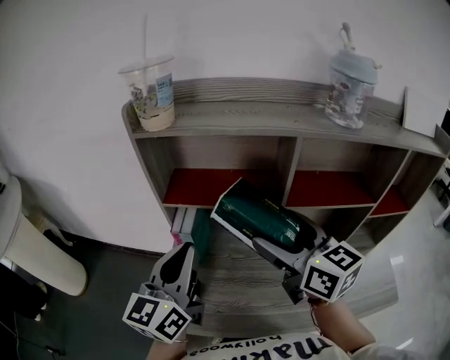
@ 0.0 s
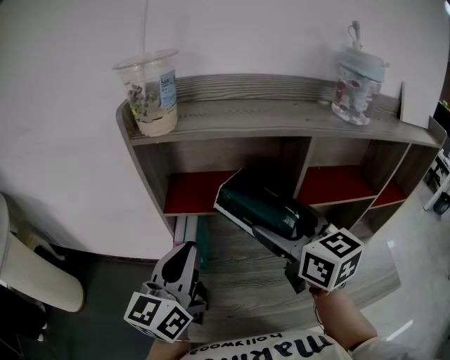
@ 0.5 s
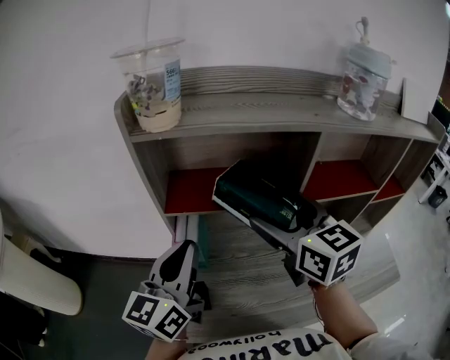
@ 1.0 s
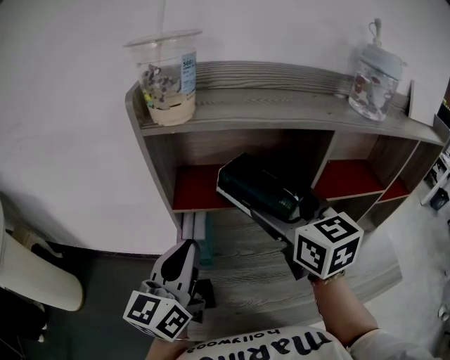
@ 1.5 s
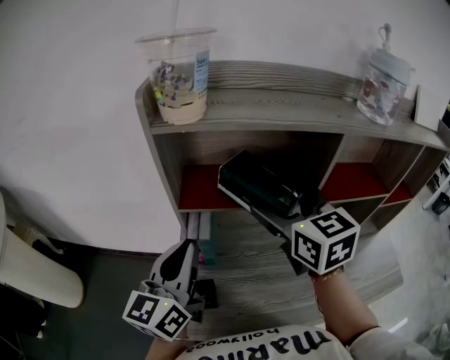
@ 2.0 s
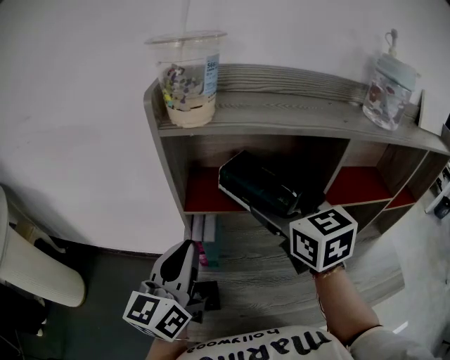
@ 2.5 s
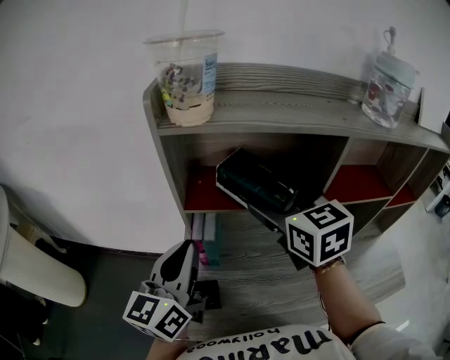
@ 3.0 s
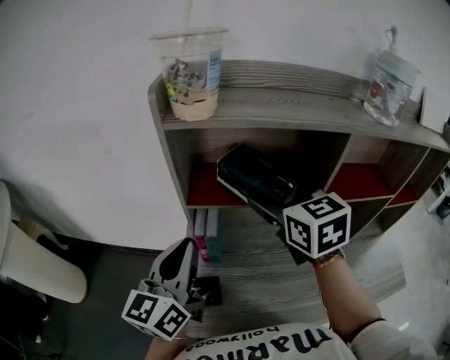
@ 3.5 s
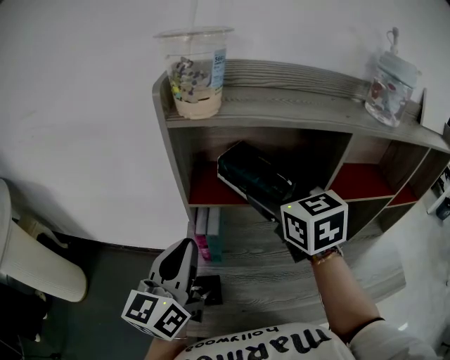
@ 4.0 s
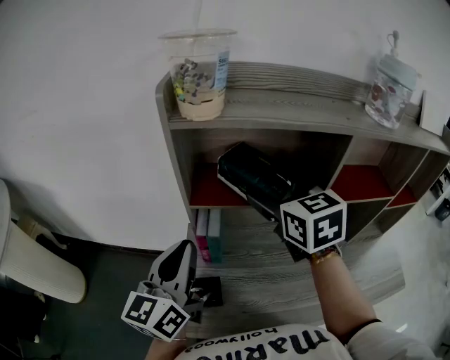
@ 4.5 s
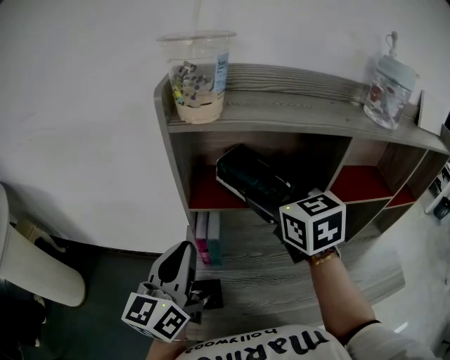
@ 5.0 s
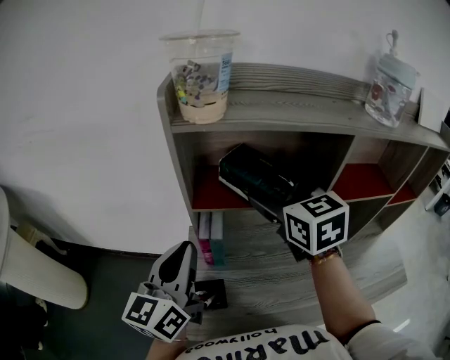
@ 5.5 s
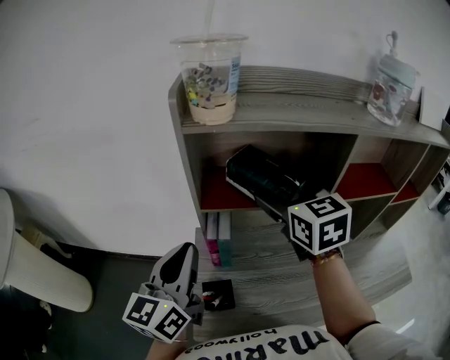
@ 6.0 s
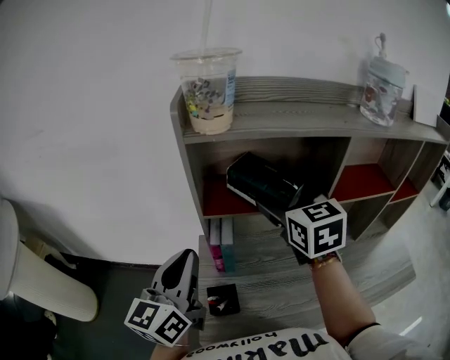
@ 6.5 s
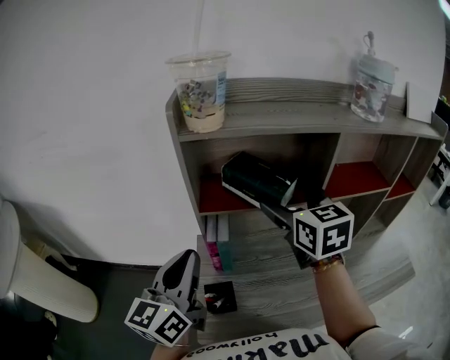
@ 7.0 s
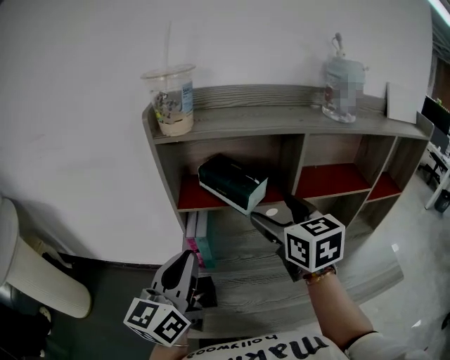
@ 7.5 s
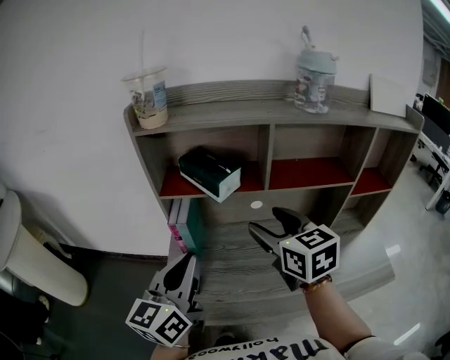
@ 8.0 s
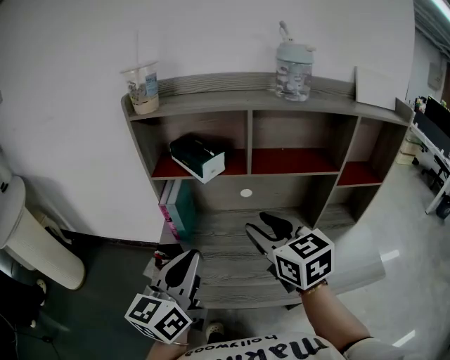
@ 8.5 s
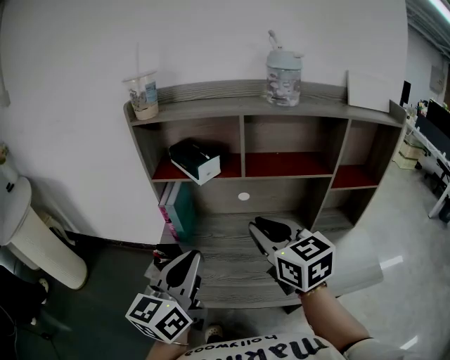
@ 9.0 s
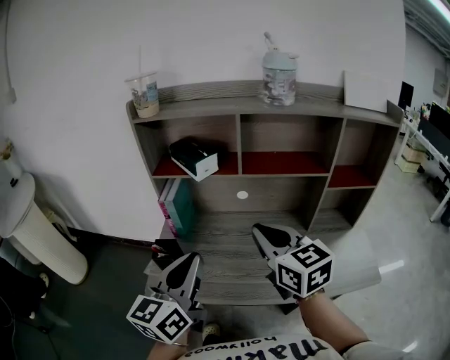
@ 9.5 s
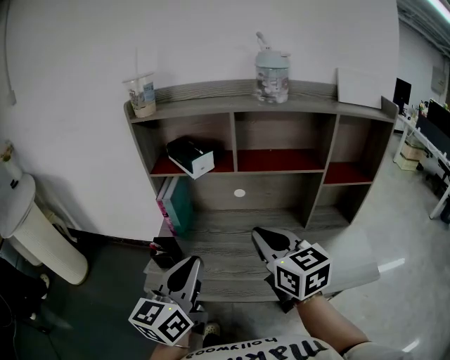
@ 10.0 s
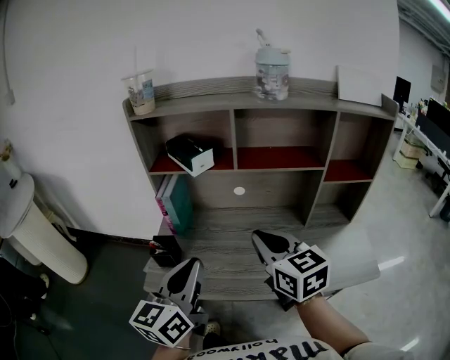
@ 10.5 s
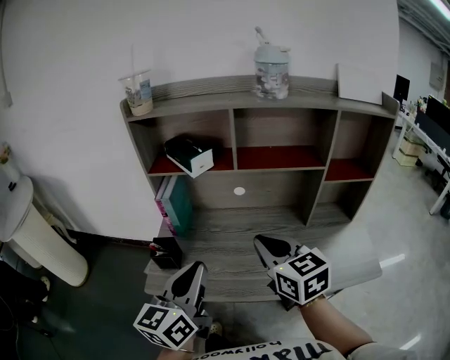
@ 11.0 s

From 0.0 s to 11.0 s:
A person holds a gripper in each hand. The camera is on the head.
From 0.0 s to 2.0 s: The right gripper is displaced forward and to the left by some 10 cm, and turns by some 20 degrees; the left gripper is displaced to the left and forward by approximately 10 cm.
From 2.0 s to 5.5 s: The grippers stay close to where they were, moving slightly.
From 5.5 s to 7.5 s: Both grippers travel together backward and to the right, approximately 10 cm.
From 7.5 s to 9.0 s: The left gripper shifts roughly 20 cm to the right and backward; the right gripper is displaced backward and to the right by some 15 cm, and closes up.
From 9.0 s to 11.0 s: The right gripper moves downward, about 5 cm; the left gripper changes place by approximately 5 cm.

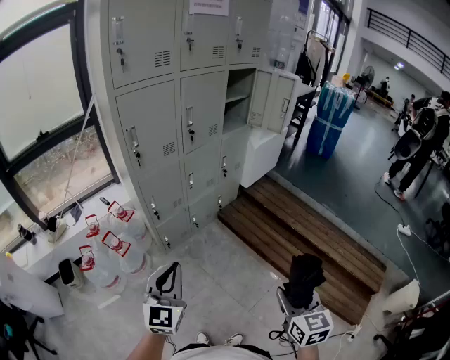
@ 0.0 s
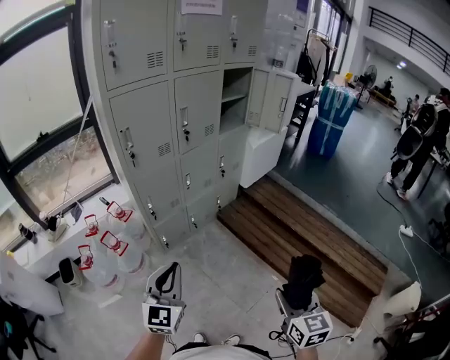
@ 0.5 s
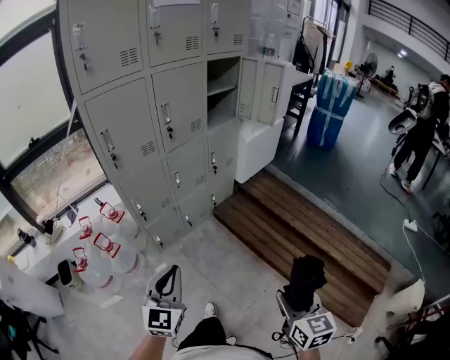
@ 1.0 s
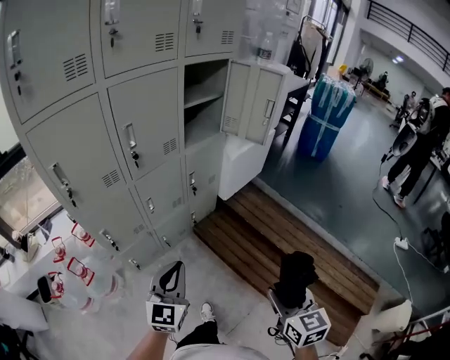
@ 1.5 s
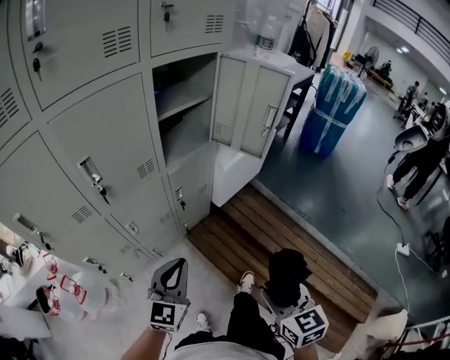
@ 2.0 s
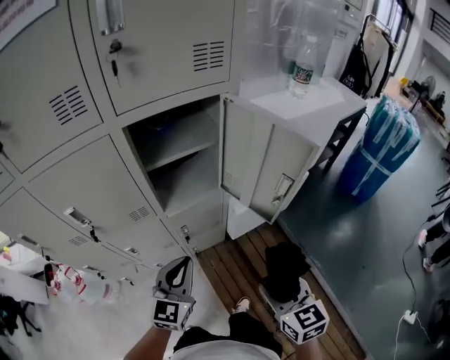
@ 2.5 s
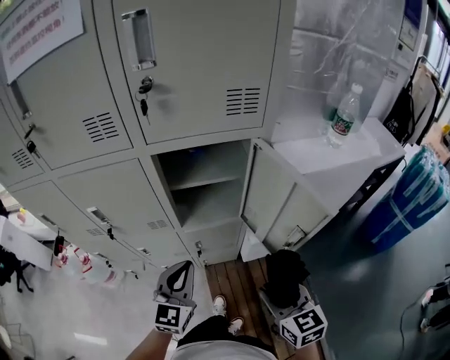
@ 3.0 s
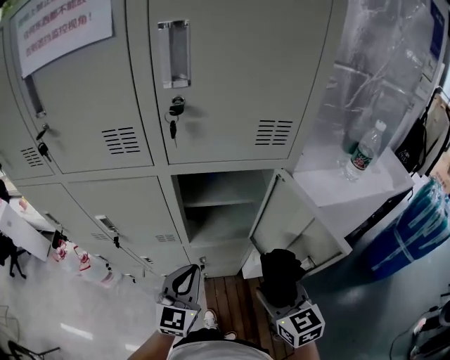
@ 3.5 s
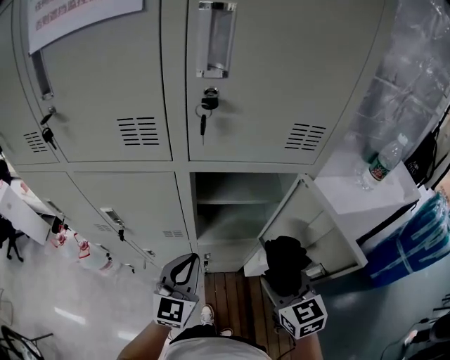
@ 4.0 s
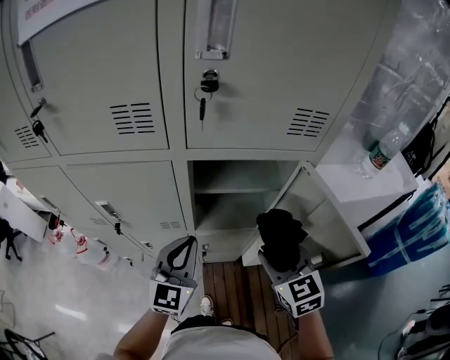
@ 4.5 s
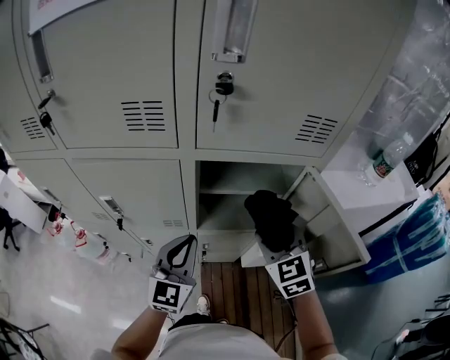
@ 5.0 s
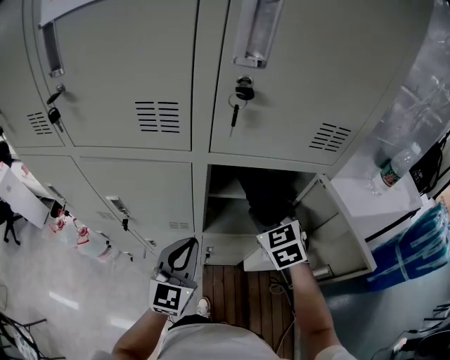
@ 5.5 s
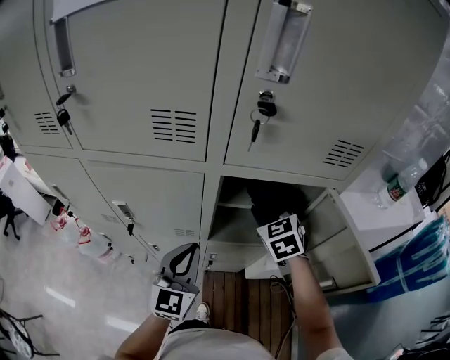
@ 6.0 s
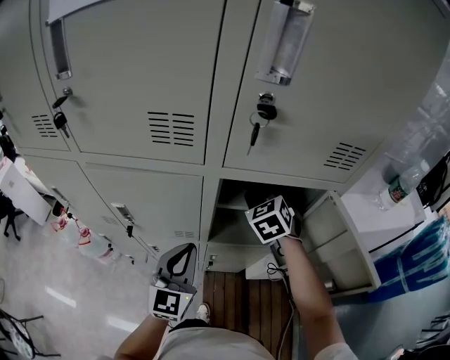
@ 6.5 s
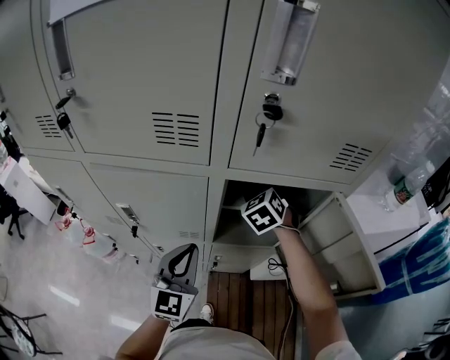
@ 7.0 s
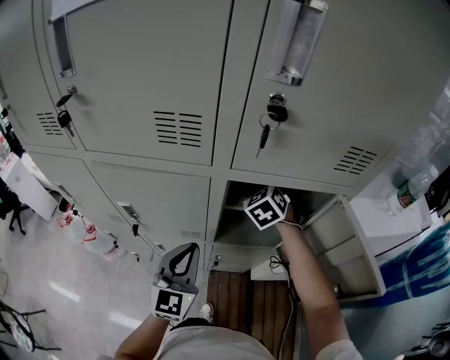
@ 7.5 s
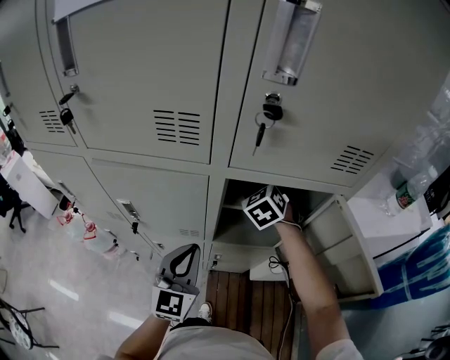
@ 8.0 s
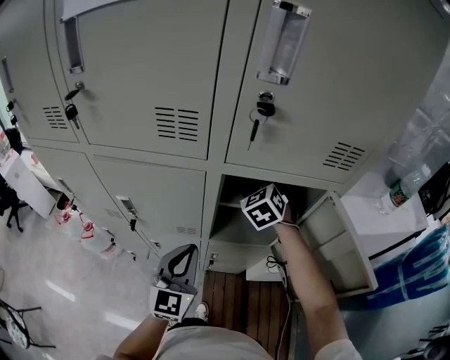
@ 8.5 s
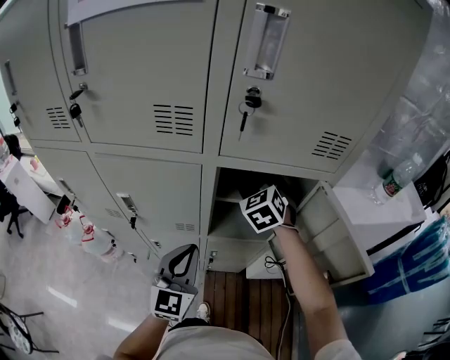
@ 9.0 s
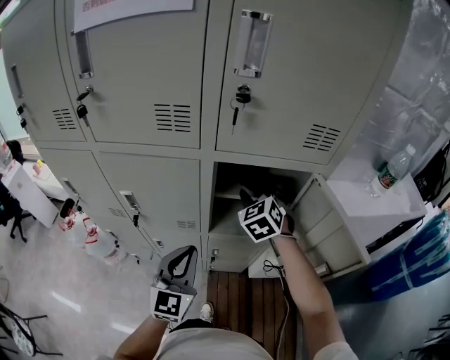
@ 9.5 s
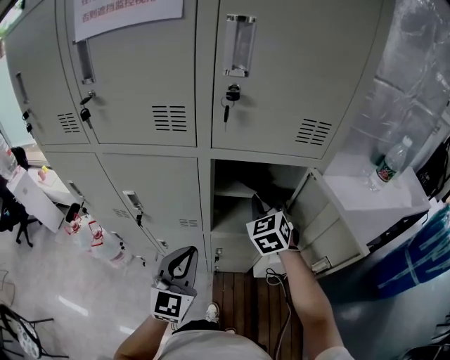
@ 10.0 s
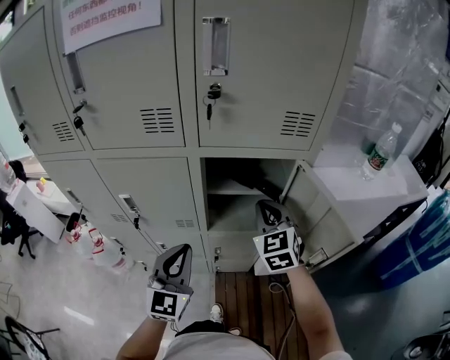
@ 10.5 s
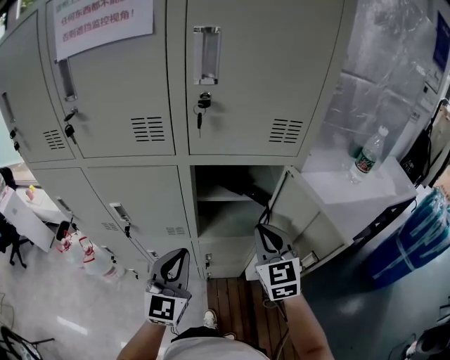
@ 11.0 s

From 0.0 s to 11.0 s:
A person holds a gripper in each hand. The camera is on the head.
From 0.0 s to 2.0 s: The pair of grippers is taken forward and to the right, roughly 50 cm.
From 2.0 s to 3.5 s: The left gripper moves some 30 cm, and turns by roughly 40 degrees. The right gripper changes place by about 40 cm, and swivels roughly 40 degrees.
From 3.5 s to 5.5 s: The right gripper travels forward by some 20 cm, and rotates roughly 20 degrees. Meanwhile the left gripper travels to the left and forward by some 10 cm.
From 5.5 s to 7.5 s: The right gripper goes about 15 cm forward and to the left.
From 7.5 s to 9.0 s: The right gripper ends up about 5 cm from where it was.
From 9.0 s to 11.0 s: The right gripper heads backward and to the right, covering about 20 cm, turns by roughly 30 degrees, and closes up; the left gripper ends up some 5 cm from where it was.

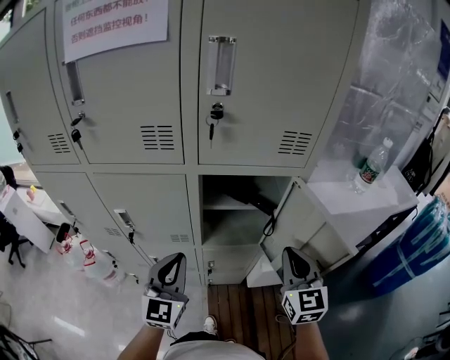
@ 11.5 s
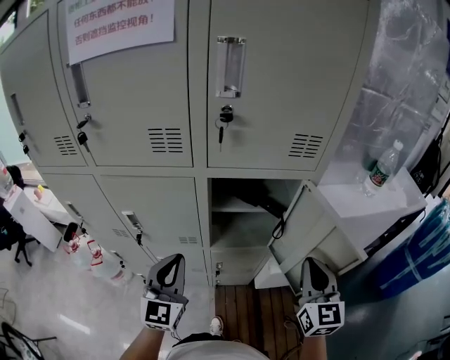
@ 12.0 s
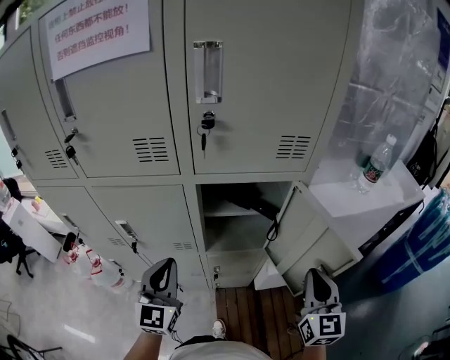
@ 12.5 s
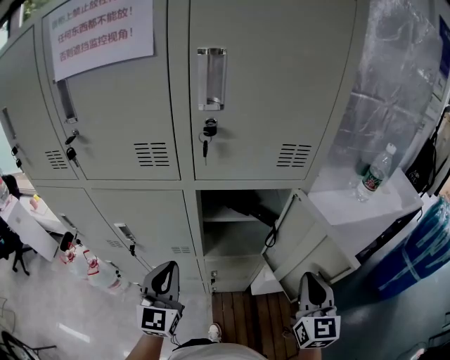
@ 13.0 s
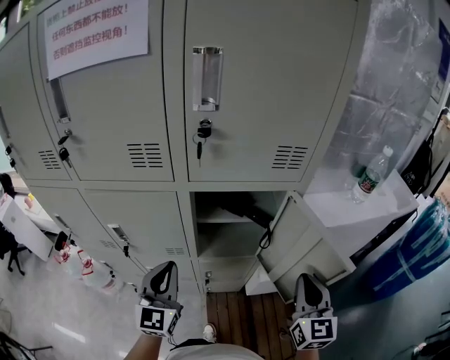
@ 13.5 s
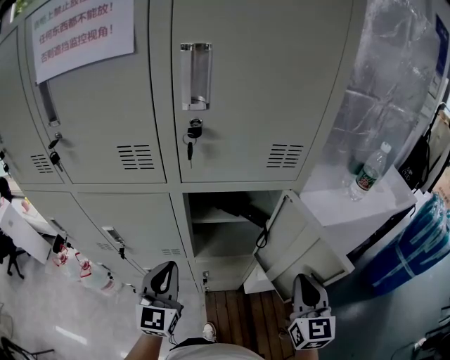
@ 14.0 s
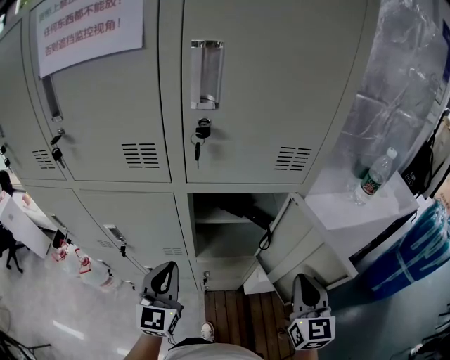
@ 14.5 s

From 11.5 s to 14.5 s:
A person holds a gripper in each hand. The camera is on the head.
From 11.5 s to 13.0 s: The right gripper heads to the right, covering some 5 cm.
From 13.0 s to 14.5 s: The grippers make only small movements.

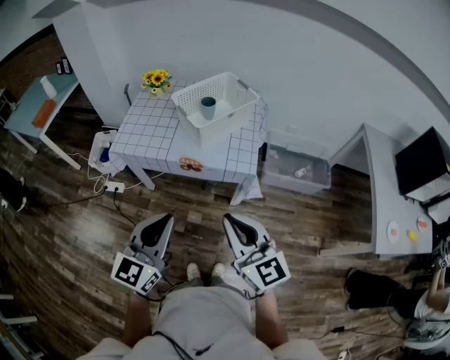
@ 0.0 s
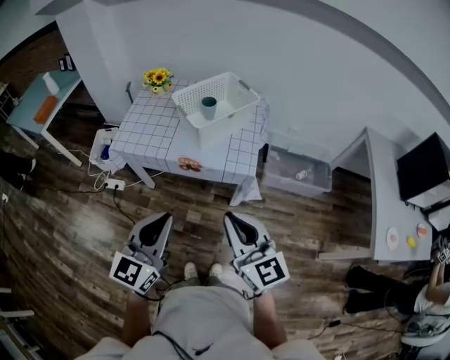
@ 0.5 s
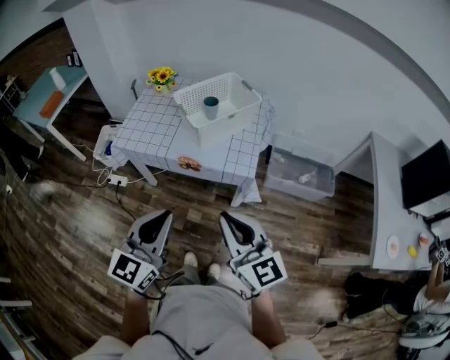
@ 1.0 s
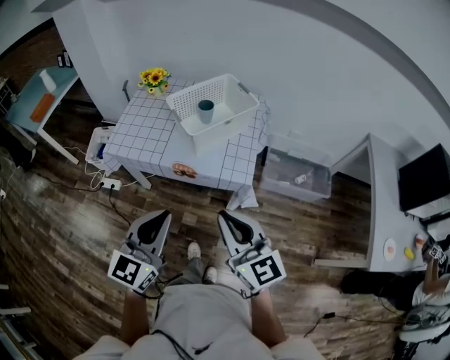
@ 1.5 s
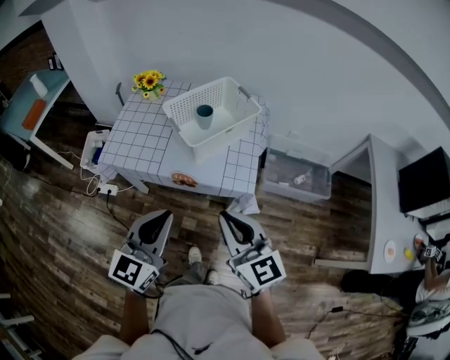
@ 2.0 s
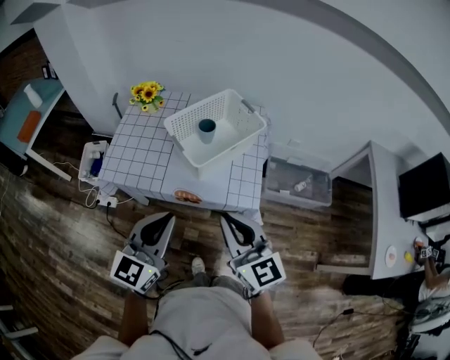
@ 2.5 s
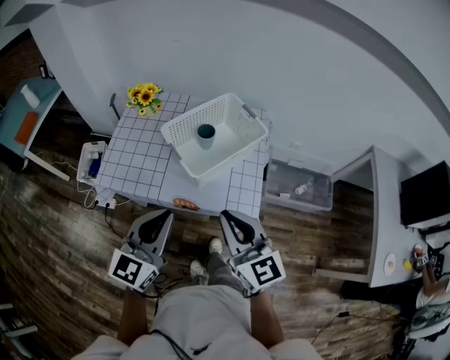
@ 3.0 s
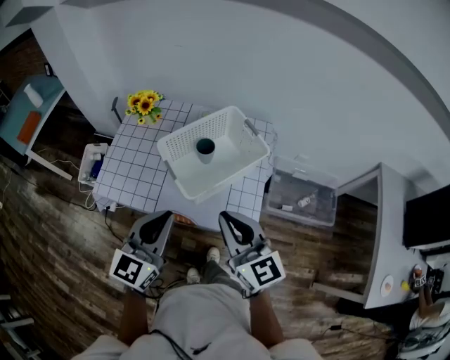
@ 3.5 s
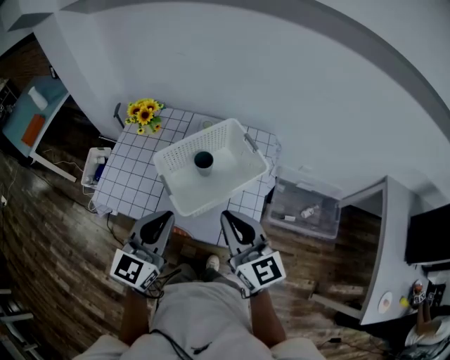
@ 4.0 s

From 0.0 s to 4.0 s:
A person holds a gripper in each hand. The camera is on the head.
From 0.0 s to 2.0 s: The grippers both shift forward by roughly 15 cm.
From 2.0 s to 4.0 s: Both grippers travel together forward, about 25 cm.
